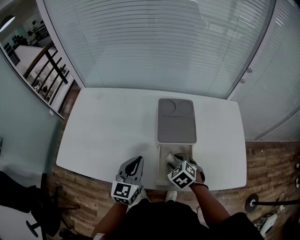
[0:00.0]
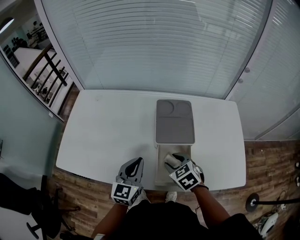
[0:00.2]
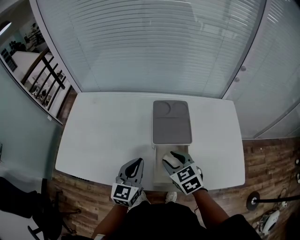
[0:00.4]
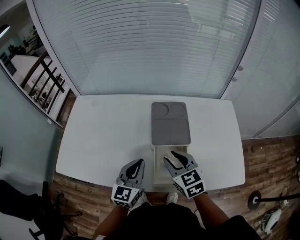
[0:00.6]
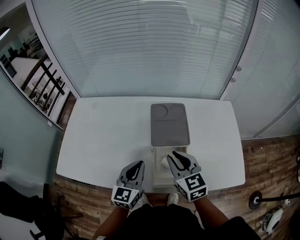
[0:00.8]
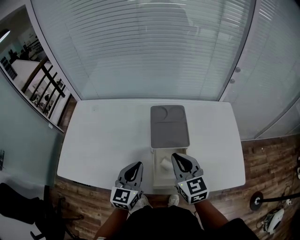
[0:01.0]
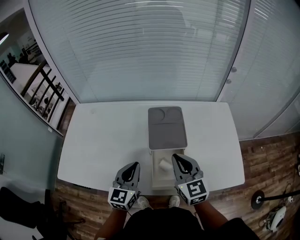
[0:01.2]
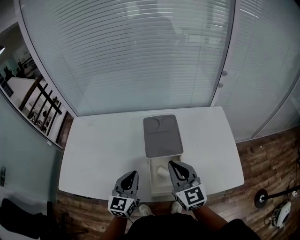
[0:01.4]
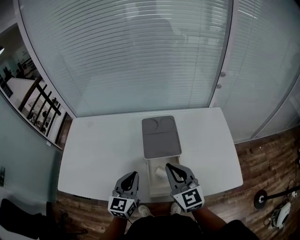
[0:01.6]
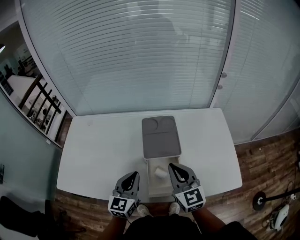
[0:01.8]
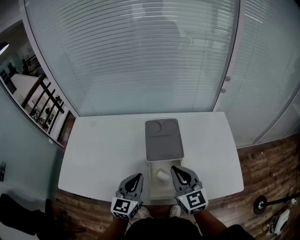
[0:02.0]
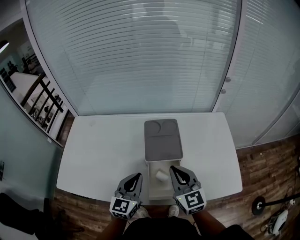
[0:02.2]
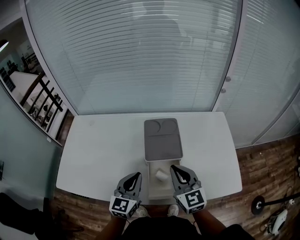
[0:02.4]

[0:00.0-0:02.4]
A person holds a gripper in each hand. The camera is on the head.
0:00.0 to 0:01.2: The right gripper is displaced upward by roughly 15 cm, points its fingers roughly 50 degrees further upward, and closes up.
0:01.2 to 0:02.4: There are only small adjustments of the grippers.

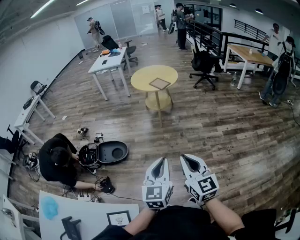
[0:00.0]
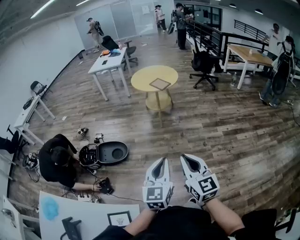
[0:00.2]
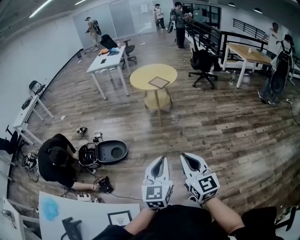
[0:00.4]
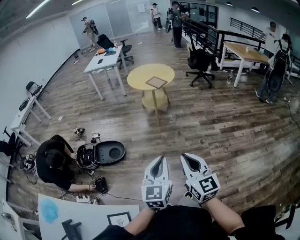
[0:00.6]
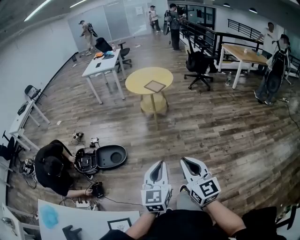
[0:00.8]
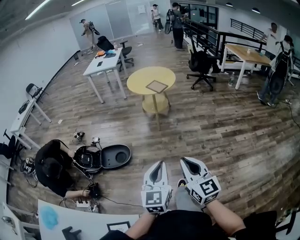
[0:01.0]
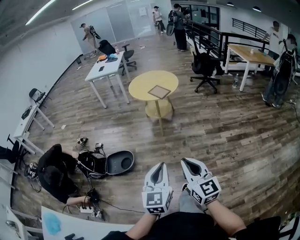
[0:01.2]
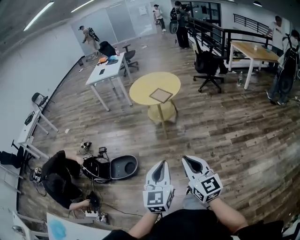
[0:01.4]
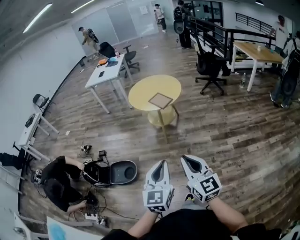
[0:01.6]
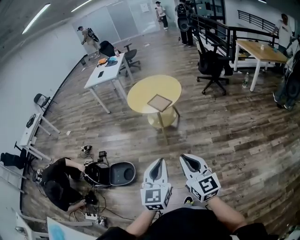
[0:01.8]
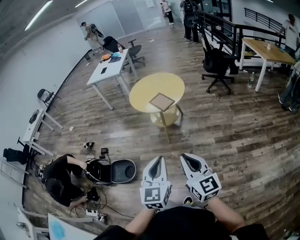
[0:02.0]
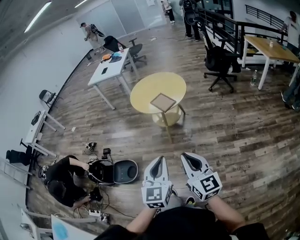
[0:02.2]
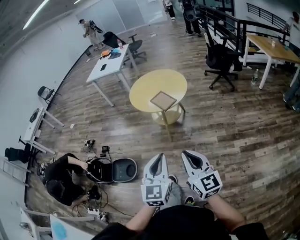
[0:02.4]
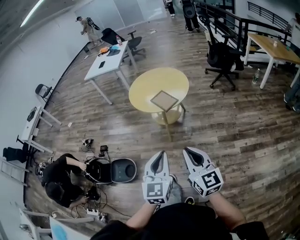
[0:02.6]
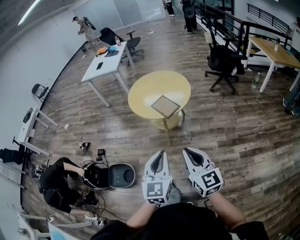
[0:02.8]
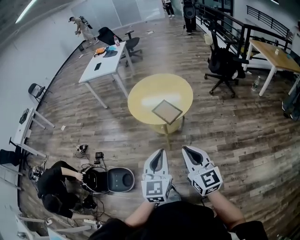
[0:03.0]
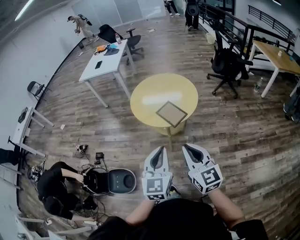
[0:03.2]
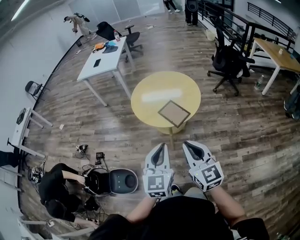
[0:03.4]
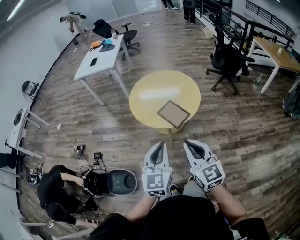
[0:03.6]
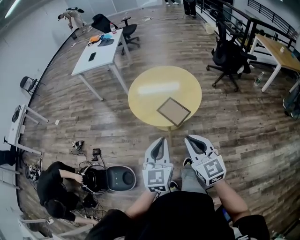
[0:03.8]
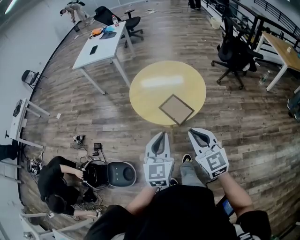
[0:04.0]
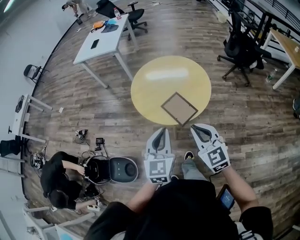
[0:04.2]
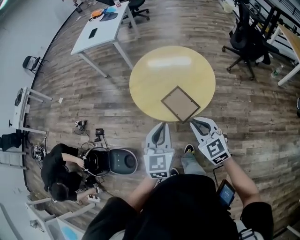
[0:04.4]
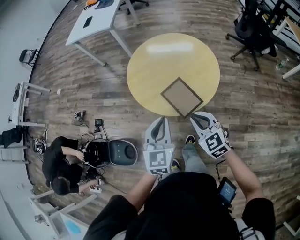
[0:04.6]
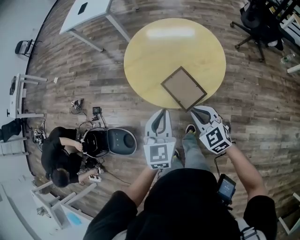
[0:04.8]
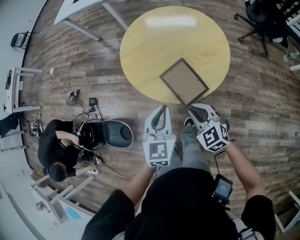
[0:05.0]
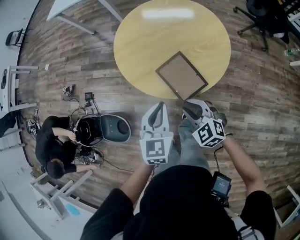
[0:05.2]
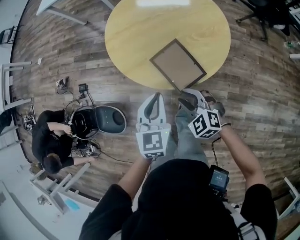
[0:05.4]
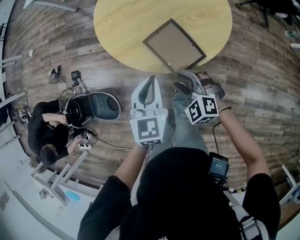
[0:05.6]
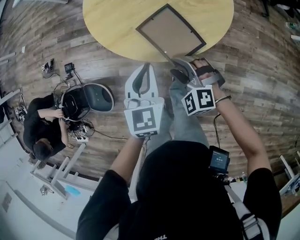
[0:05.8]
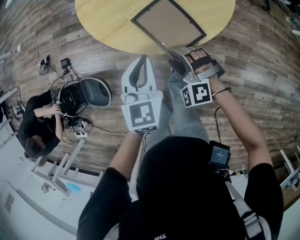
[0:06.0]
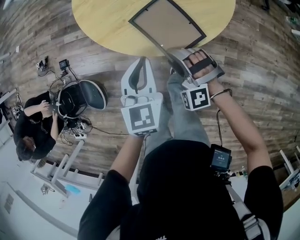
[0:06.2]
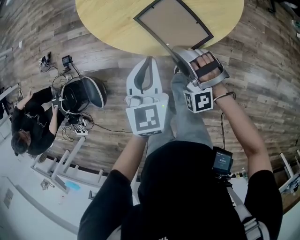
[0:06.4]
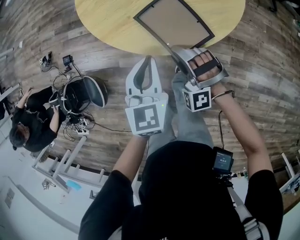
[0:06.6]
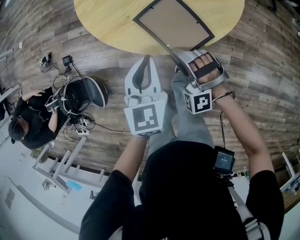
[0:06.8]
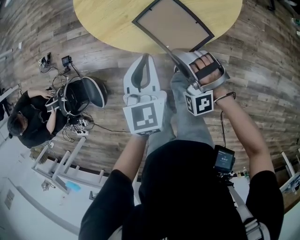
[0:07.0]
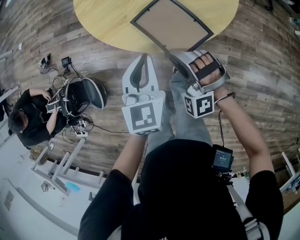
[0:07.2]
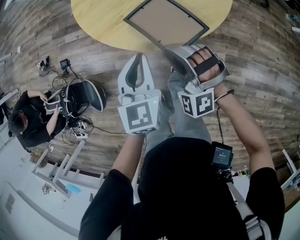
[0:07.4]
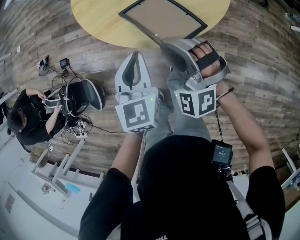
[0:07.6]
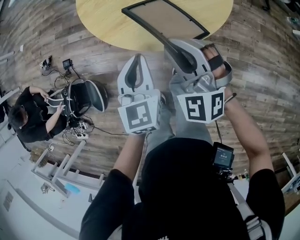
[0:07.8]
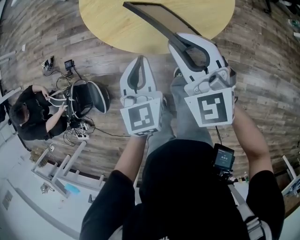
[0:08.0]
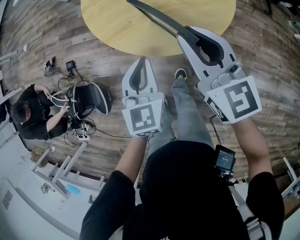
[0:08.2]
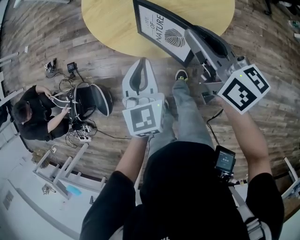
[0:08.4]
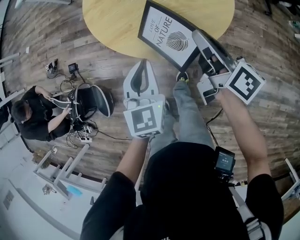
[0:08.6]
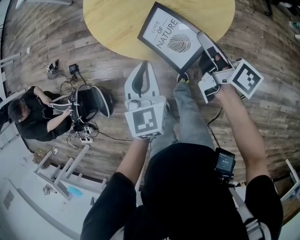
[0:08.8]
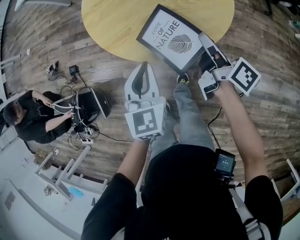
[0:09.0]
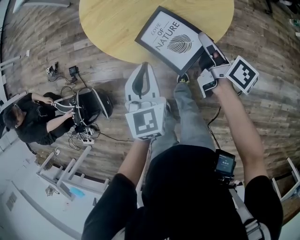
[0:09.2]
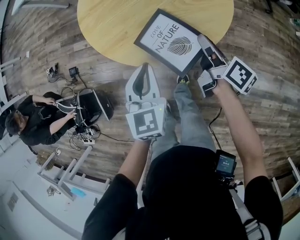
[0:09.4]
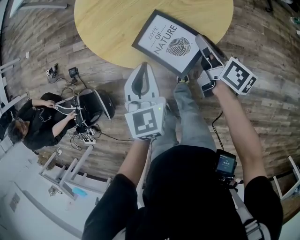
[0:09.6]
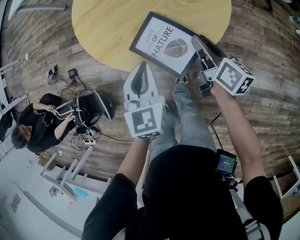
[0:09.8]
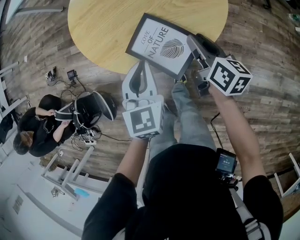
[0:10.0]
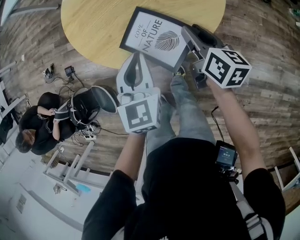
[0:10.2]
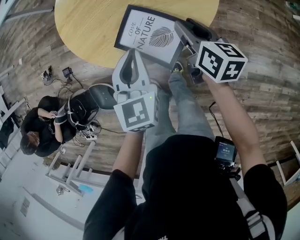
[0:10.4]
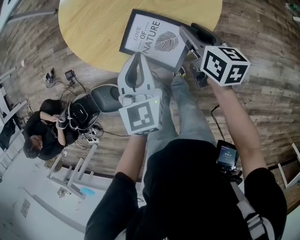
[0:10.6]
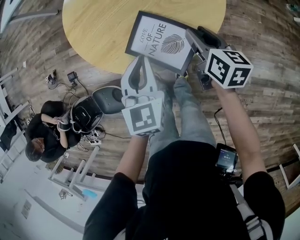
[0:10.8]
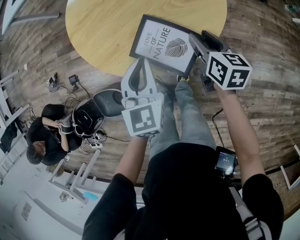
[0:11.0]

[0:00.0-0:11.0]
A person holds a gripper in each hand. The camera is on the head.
0:00.0 to 0:01.6: The two grippers go approximately 30 cm forward.
0:01.6 to 0:03.2: The pair of grippers is taken forward, about 40 cm.
0:03.2 to 0:04.8: Both grippers travel together forward and downward, some 40 cm. The right gripper tips its fingers downward by some 30 degrees.
0:04.8 to 0:06.2: The two grippers go approximately 15 cm downward. The right gripper rolls counterclockwise, seen from behind, by roughly 50 degrees, and opens up.
0:06.2 to 0:07.8: The right gripper shifts about 15 cm upward, turns by approximately 30 degrees, and closes its fingers.
0:07.8 to 0:09.4: The right gripper goes roughly 20 cm to the right and downward, and rotates around the line of its fingers by roughly 110 degrees, clockwise from behind.
0:09.4 to 0:11.0: The left gripper changes place by some 5 cm; the right gripper rotates about 40 degrees, and opens.

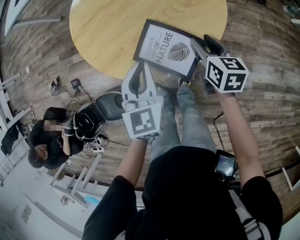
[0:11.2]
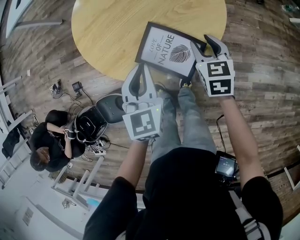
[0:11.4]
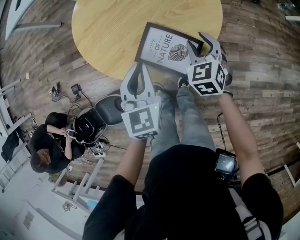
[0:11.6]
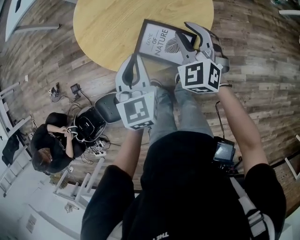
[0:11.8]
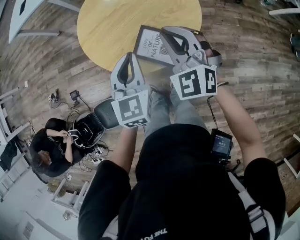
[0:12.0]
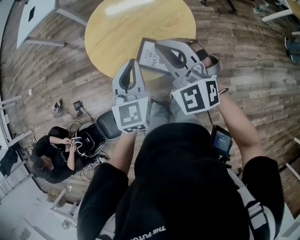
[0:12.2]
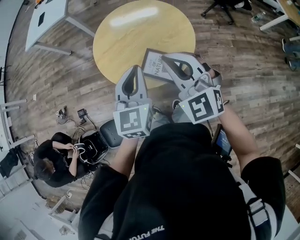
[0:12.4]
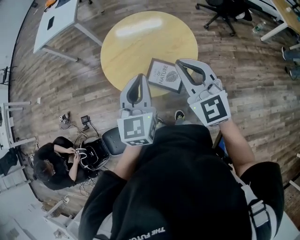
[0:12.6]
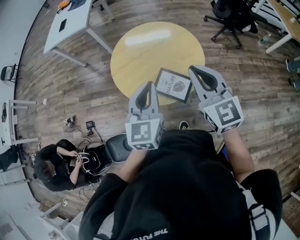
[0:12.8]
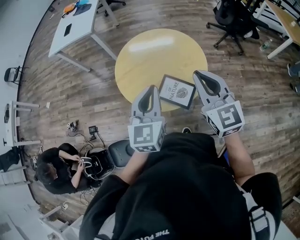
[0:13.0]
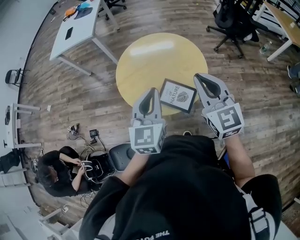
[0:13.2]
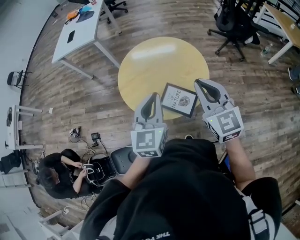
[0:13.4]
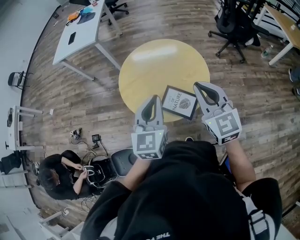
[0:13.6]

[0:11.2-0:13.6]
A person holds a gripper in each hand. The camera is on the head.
0:11.2 to 0:12.4: The two grippers go about 30 cm upward. The right gripper twists roughly 60 degrees counterclockwise, seen from behind, and closes up.
0:12.4 to 0:13.6: The right gripper moves approximately 5 cm, and turns by some 30 degrees.

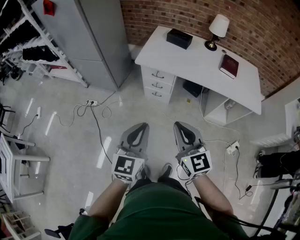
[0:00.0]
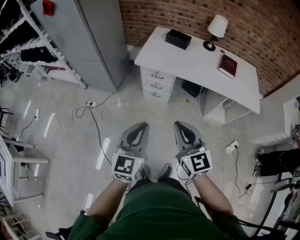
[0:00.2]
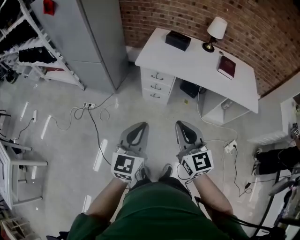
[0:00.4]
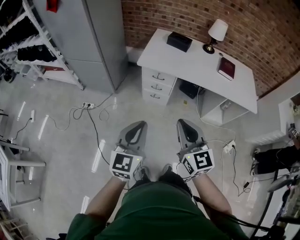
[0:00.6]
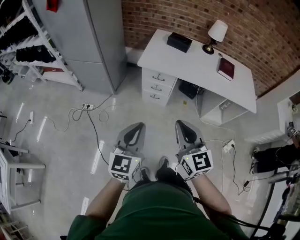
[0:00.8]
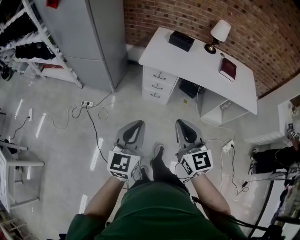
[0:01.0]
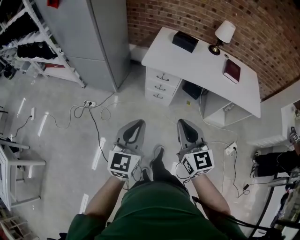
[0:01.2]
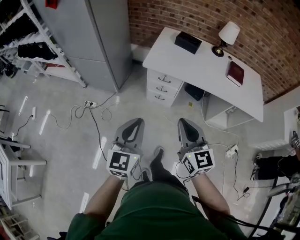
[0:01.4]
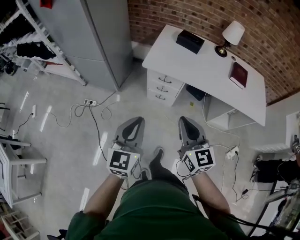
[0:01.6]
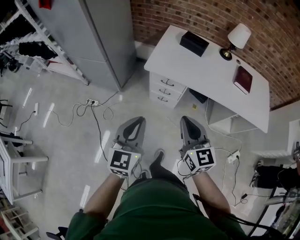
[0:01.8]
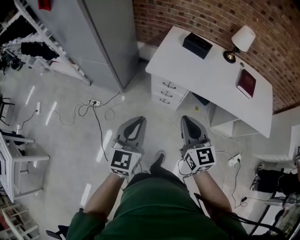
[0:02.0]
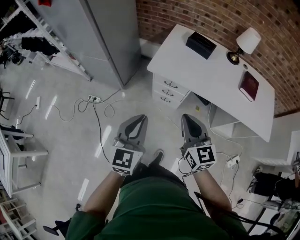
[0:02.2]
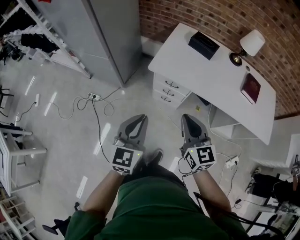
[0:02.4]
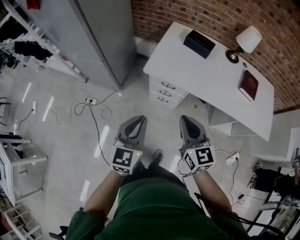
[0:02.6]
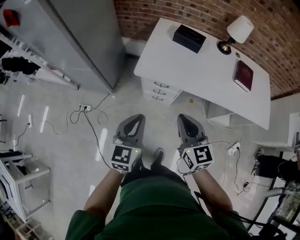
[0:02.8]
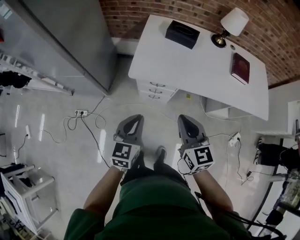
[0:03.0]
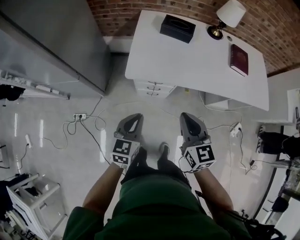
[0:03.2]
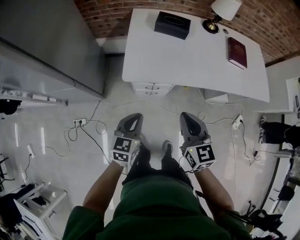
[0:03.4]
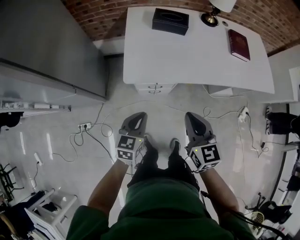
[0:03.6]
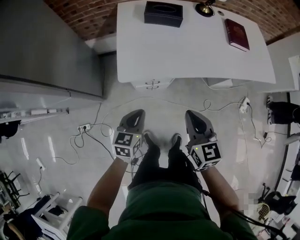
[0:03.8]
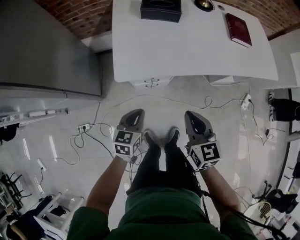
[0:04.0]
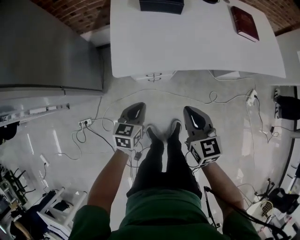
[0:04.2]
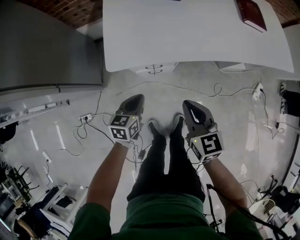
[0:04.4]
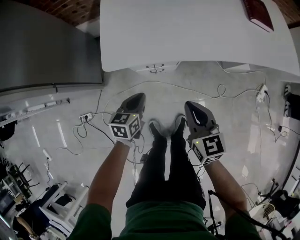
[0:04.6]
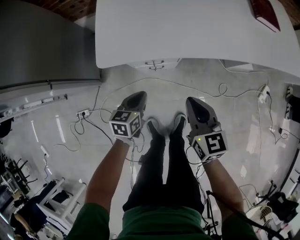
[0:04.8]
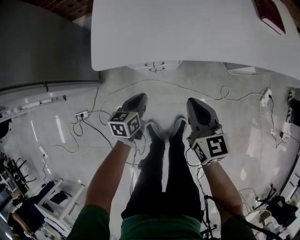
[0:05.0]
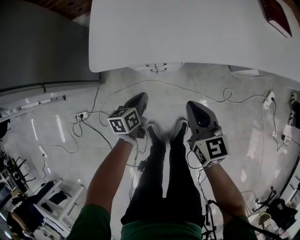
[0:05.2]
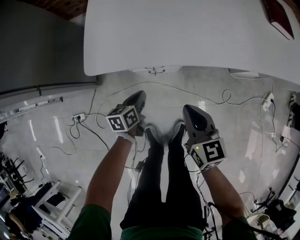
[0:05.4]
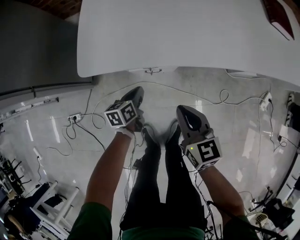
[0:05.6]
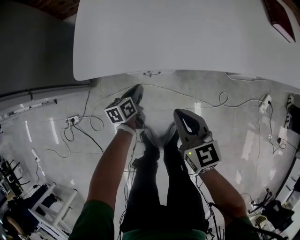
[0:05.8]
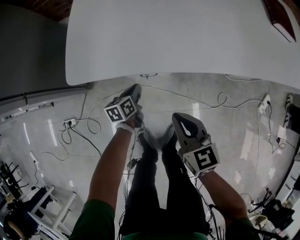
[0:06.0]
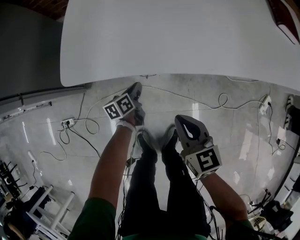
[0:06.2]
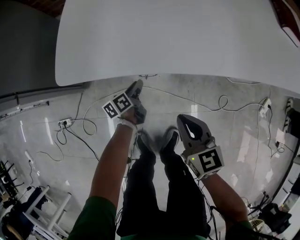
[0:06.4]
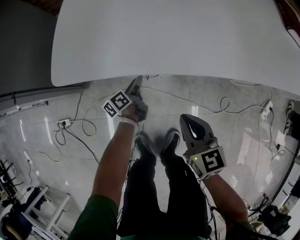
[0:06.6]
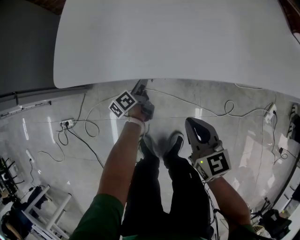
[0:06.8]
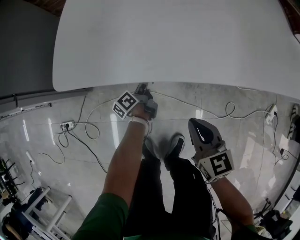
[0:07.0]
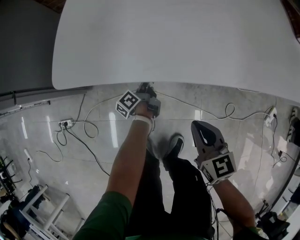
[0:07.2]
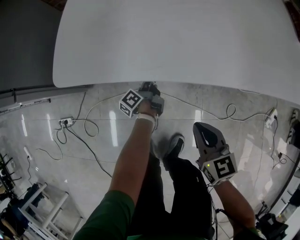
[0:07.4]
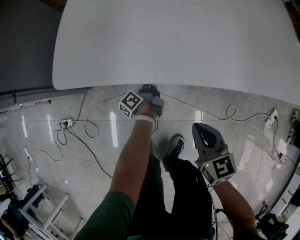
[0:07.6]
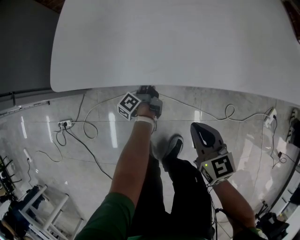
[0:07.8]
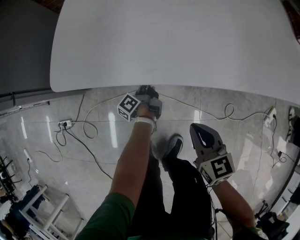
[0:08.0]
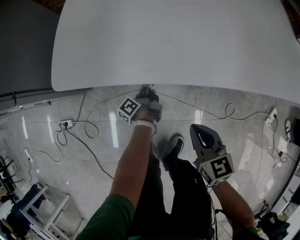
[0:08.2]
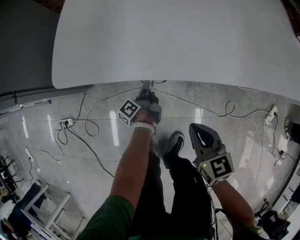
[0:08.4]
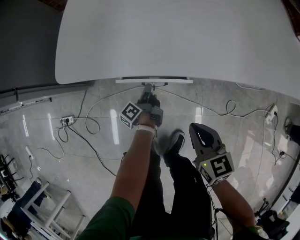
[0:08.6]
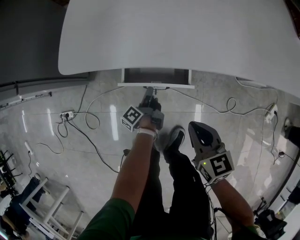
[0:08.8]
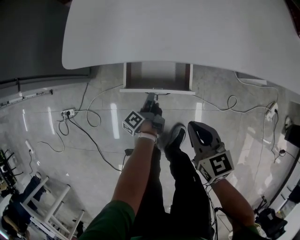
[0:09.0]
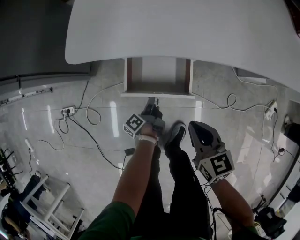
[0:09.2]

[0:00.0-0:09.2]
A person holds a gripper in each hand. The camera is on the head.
0:00.0 to 0:01.6: The two grippers go roughly 15 cm forward and to the left.
0:01.6 to 0:03.0: The left gripper moves forward and downward, approximately 25 cm. The right gripper goes some 15 cm forward.
0:03.0 to 0:04.6: The two grippers go some 25 cm downward. The left gripper rotates some 30 degrees. Meanwhile the right gripper swivels about 20 degrees.
0:04.6 to 0:06.2: The left gripper heads downward, covering roughly 25 cm, and swivels approximately 30 degrees. Meanwhile the right gripper goes roughly 15 cm downward.
0:06.2 to 0:07.6: The left gripper heads forward and downward, covering roughly 10 cm, swivels approximately 40 degrees, and opens, then closes again. The right gripper moves downward, about 5 cm.
0:07.6 to 0:09.2: The left gripper goes about 15 cm backward, while the right gripper moves some 5 cm.
